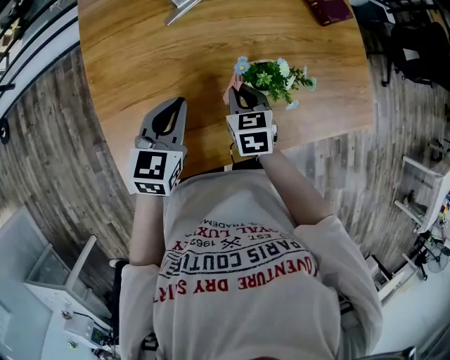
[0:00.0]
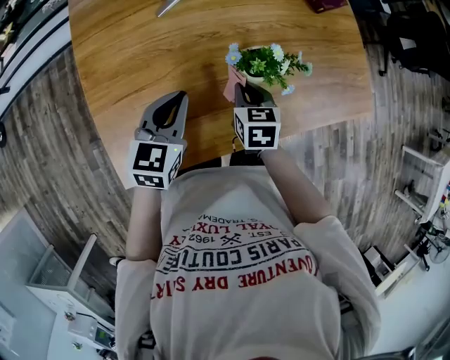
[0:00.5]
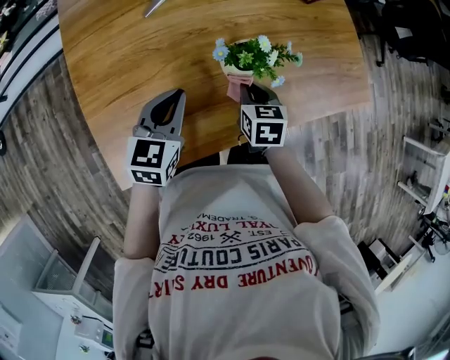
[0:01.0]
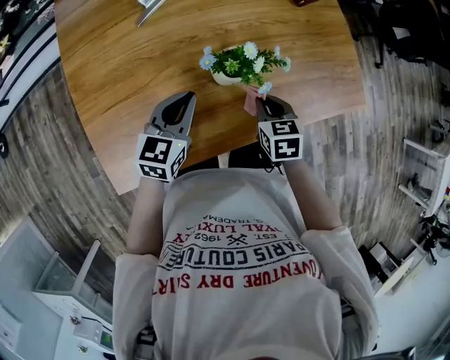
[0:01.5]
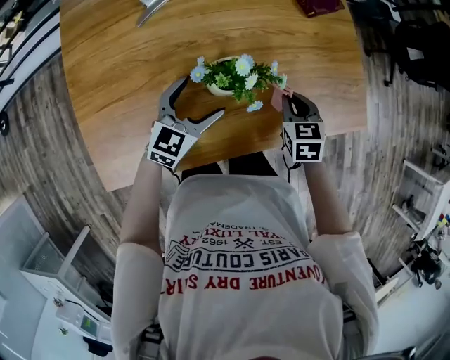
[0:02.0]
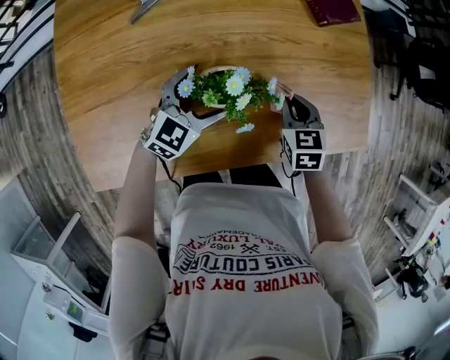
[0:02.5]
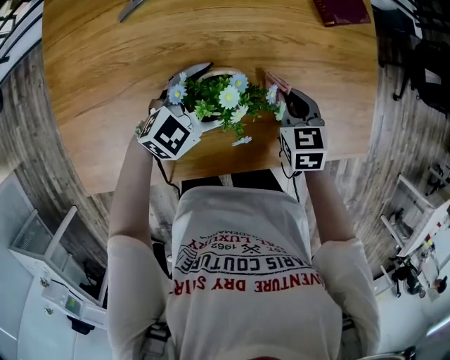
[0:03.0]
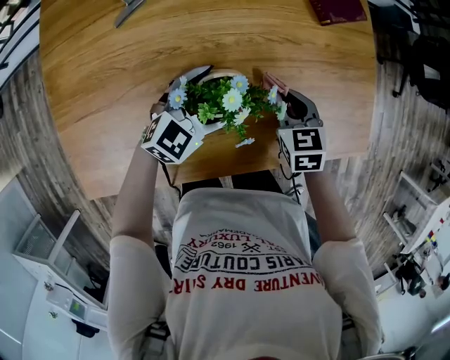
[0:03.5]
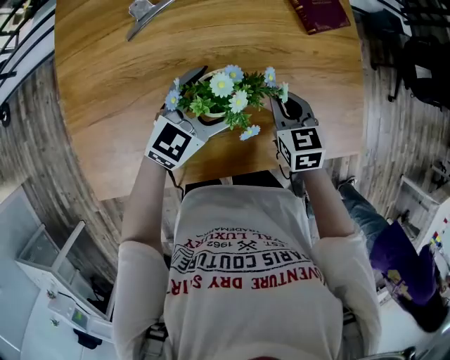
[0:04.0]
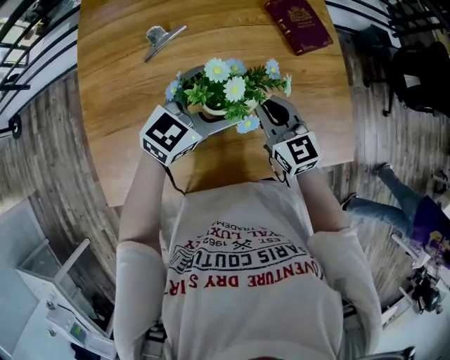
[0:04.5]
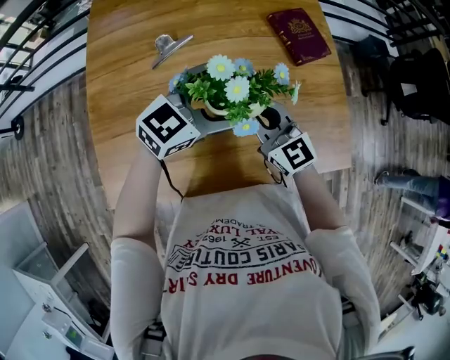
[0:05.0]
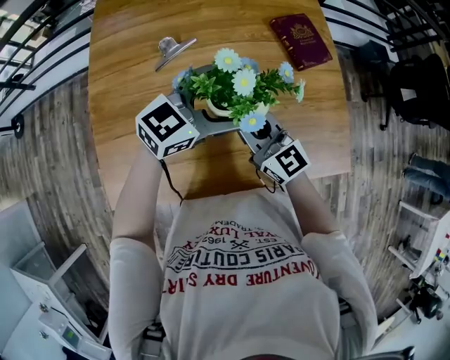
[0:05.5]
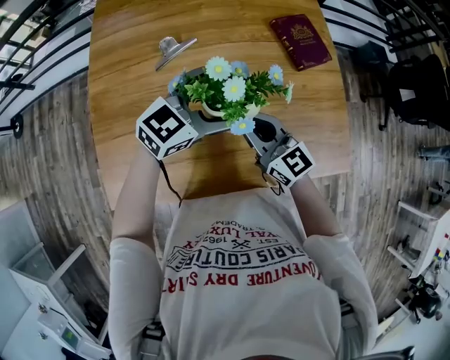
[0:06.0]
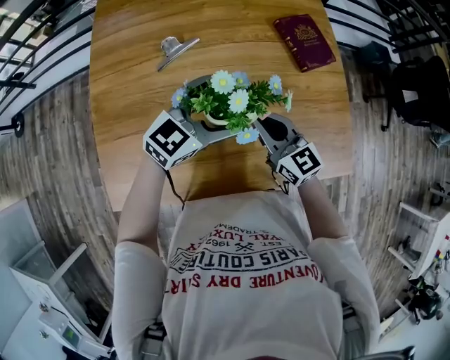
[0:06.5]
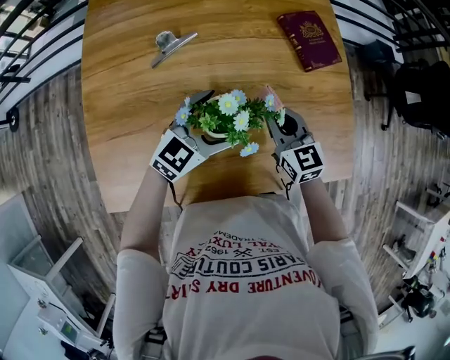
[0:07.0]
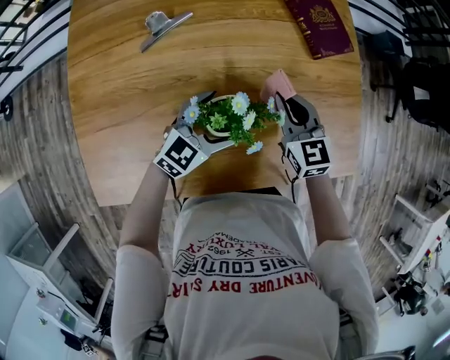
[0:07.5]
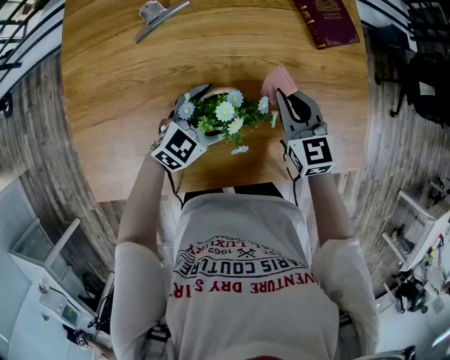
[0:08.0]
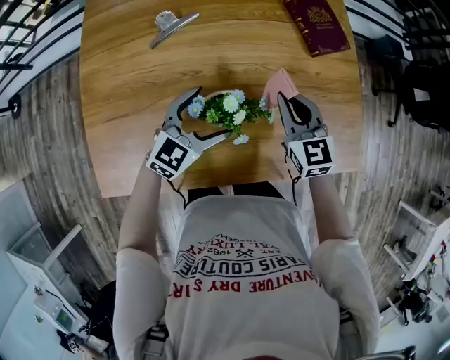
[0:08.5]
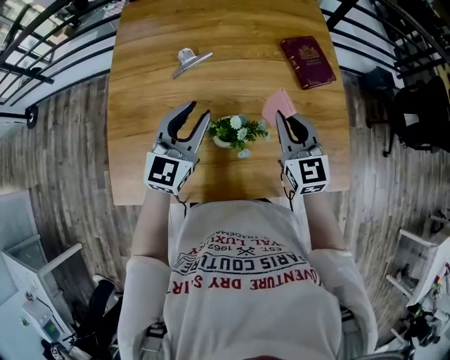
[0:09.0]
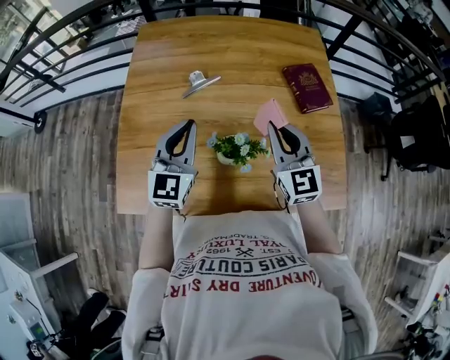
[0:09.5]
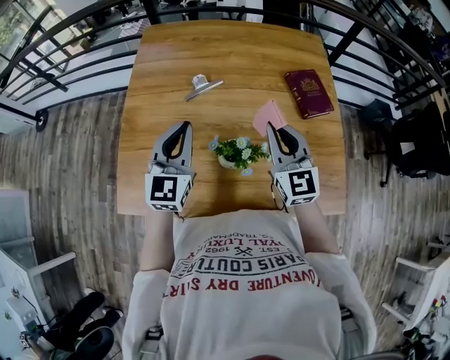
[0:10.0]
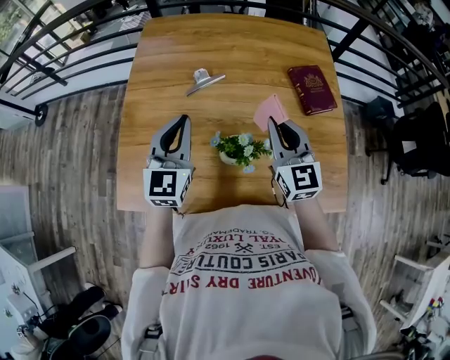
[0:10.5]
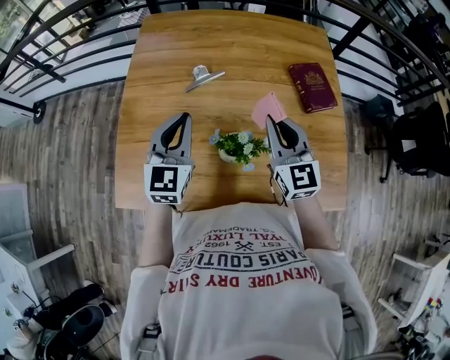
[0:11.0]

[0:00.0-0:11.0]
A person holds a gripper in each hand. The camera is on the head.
0:00.0 to 0:02.0: The right gripper is displaced to the right by about 25 cm; the left gripper moves to the right and downward, about 15 cm, and opens.
0:02.0 to 0:03.5: The left gripper moves forward and to the right, some 10 cm. Meanwhile the right gripper is displaced forward by approximately 5 cm.
0:03.5 to 0:05.5: The left gripper travels upward by roughly 20 cm, and changes its angle by about 20 degrees; the right gripper goes about 25 cm upward and to the left, and angles its fingers upward, by about 50 degrees.
0:05.5 to 0:07.5: The left gripper goes approximately 20 cm downward. The right gripper moves to the right, downward and forward, roughly 15 cm, and changes its angle by approximately 30 degrees.
0:07.5 to 0:09.0: The left gripper moves upward and to the left, approximately 20 cm, changes its angle by about 40 degrees, and closes its fingers. The right gripper travels upward by some 10 cm.
0:09.0 to 0:11.0: Both grippers move to the left, approximately 5 cm.

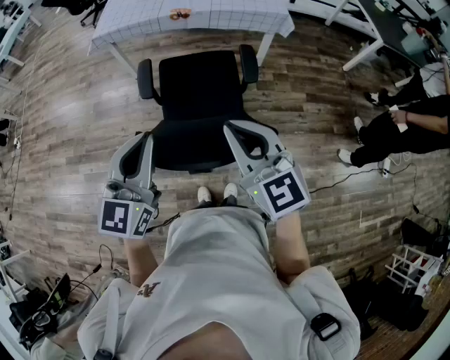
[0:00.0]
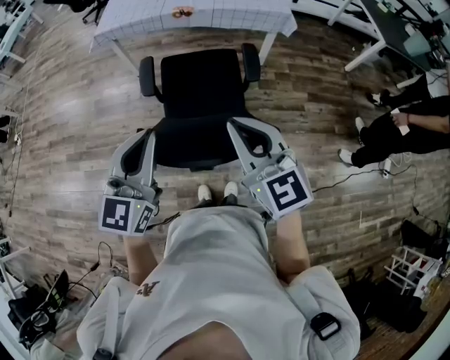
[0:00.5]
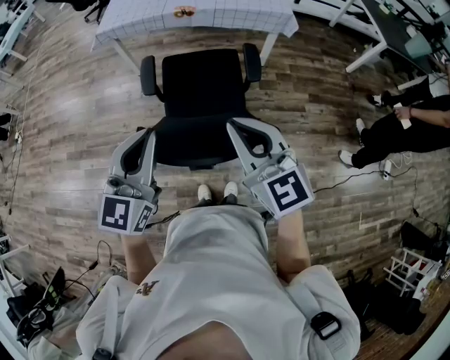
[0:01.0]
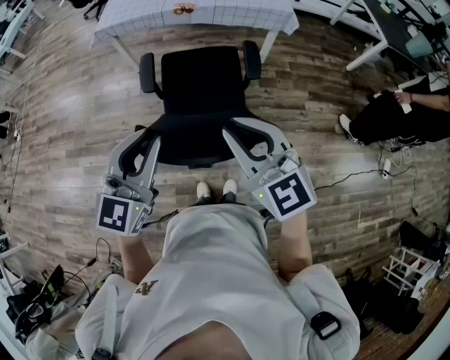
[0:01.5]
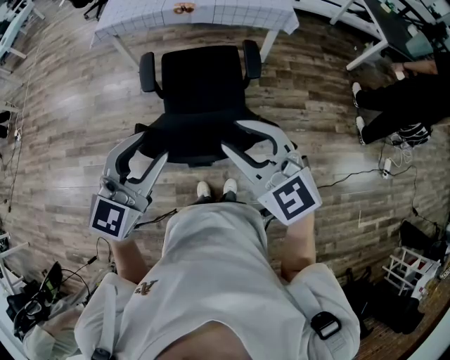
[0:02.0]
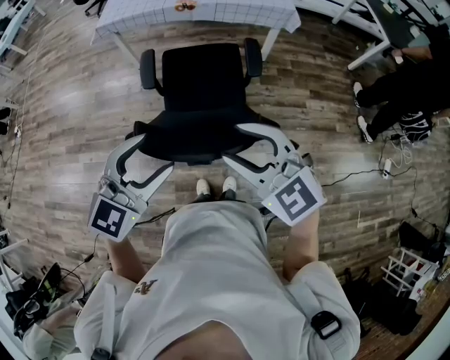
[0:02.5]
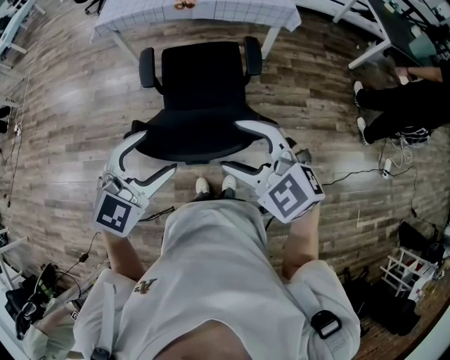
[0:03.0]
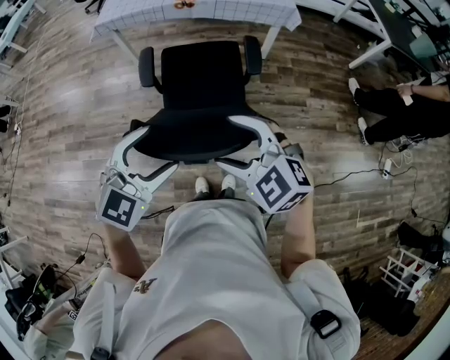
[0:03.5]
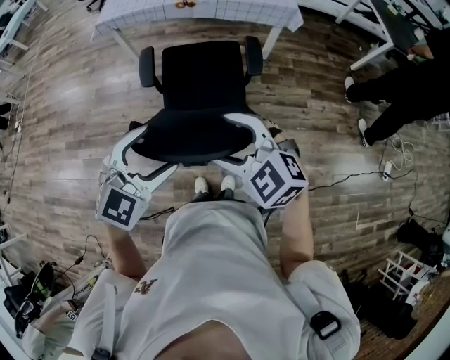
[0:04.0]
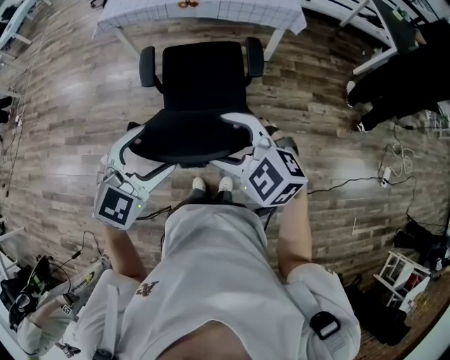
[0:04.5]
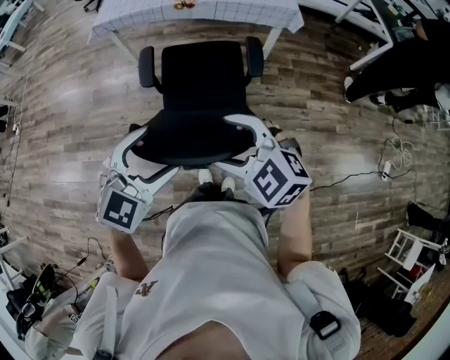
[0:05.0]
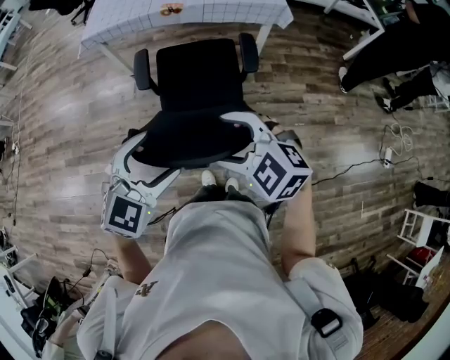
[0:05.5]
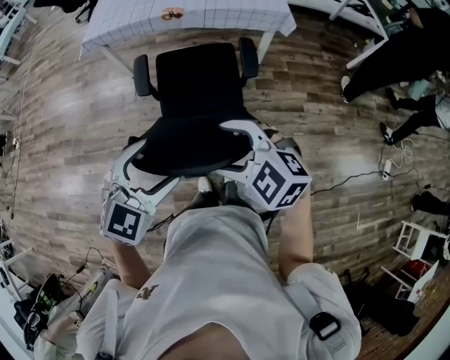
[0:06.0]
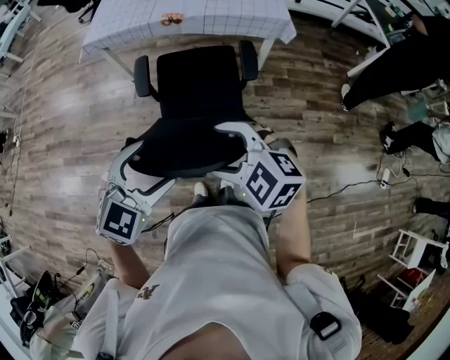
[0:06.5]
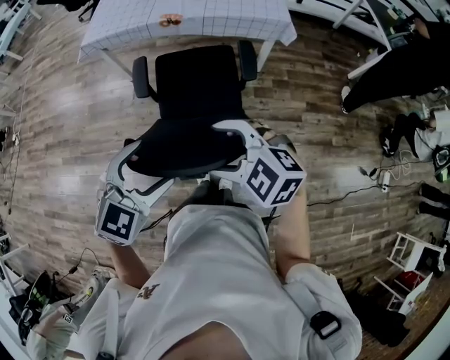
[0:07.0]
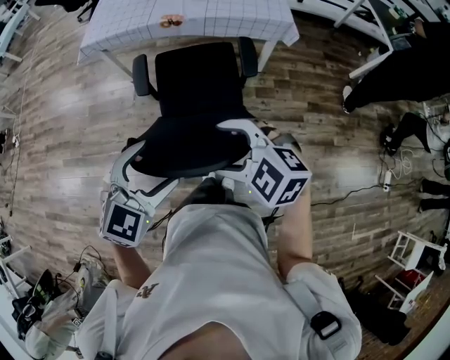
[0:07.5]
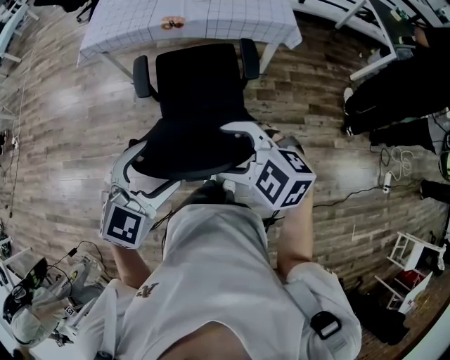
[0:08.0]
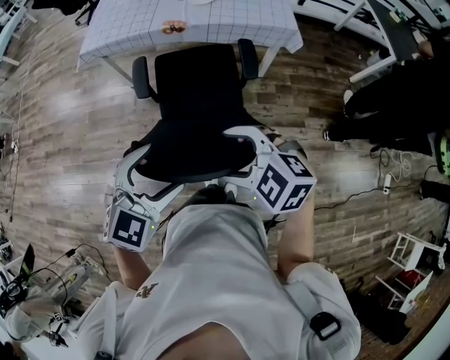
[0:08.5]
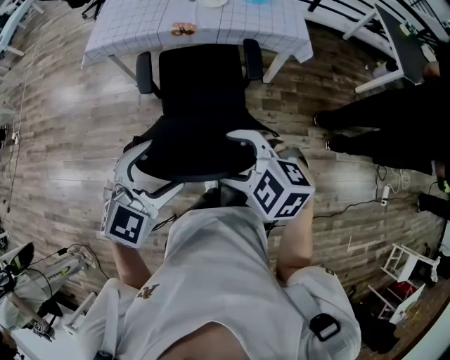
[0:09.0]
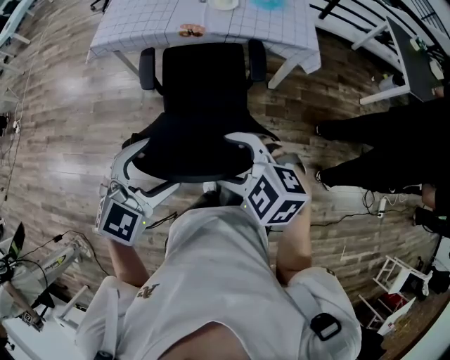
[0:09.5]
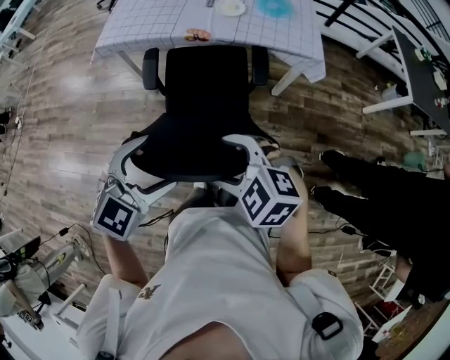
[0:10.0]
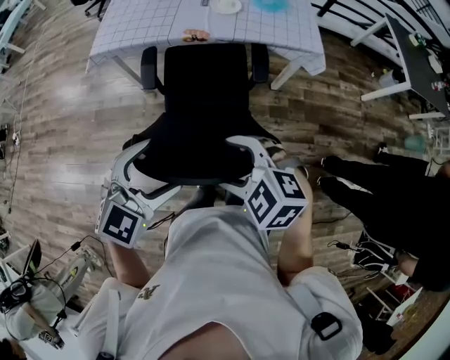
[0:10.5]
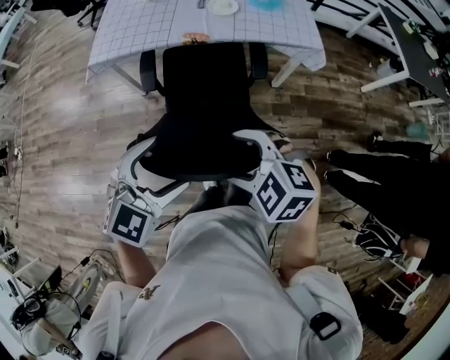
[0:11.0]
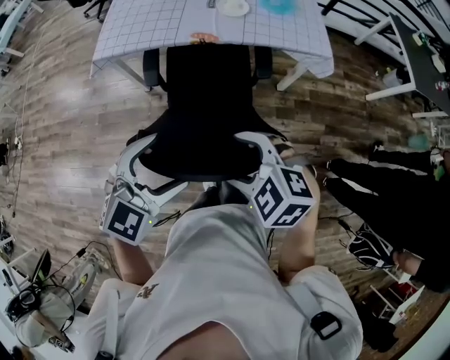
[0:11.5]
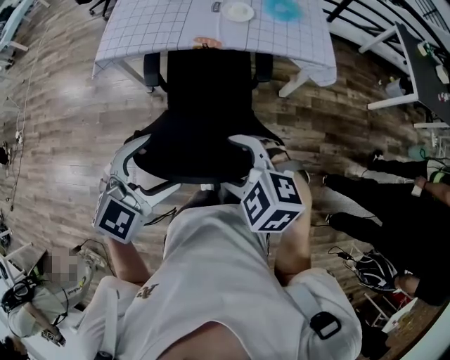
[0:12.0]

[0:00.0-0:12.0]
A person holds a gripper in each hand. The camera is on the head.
0:00.0 to 0:02.0: The right gripper opens its fingers. Meanwhile the left gripper opens.
0:02.0 to 0:04.0: The grippers both shift downward by approximately 5 cm. The left gripper changes its angle by roughly 20 degrees, and opens its fingers. Meanwhile the right gripper swivels approximately 20 degrees, and opens up.
0:04.0 to 0:06.0: The two grippers go about 5 cm forward.
0:06.0 to 0:08.0: The two grippers go roughly 10 cm forward.
0:08.0 to 0:10.0: Both grippers move forward, approximately 10 cm.
0:10.0 to 0:12.0: The right gripper is displaced forward and to the left by approximately 10 cm. Meanwhile the left gripper travels forward by approximately 10 cm.

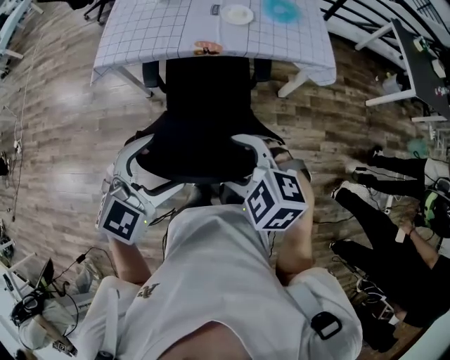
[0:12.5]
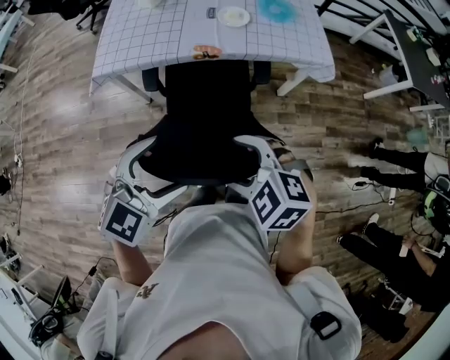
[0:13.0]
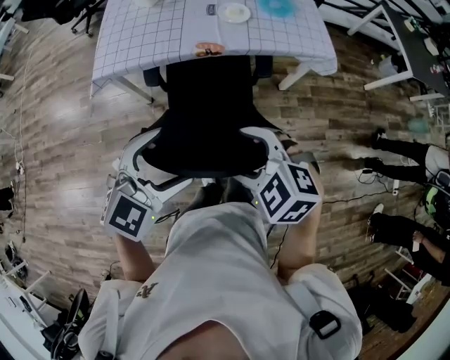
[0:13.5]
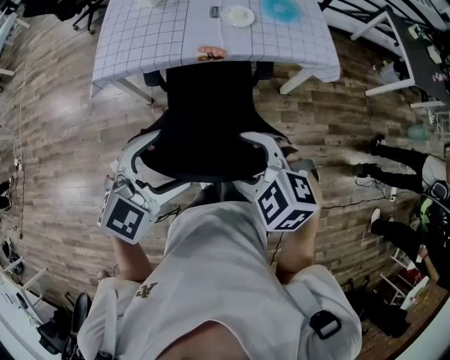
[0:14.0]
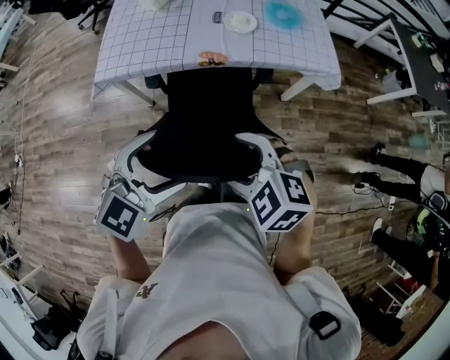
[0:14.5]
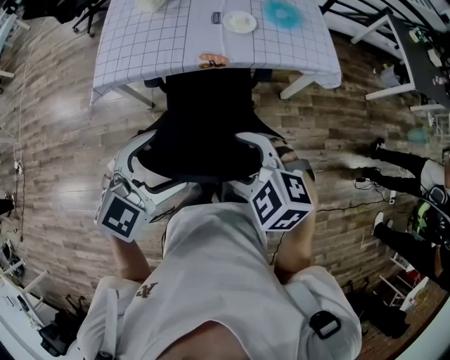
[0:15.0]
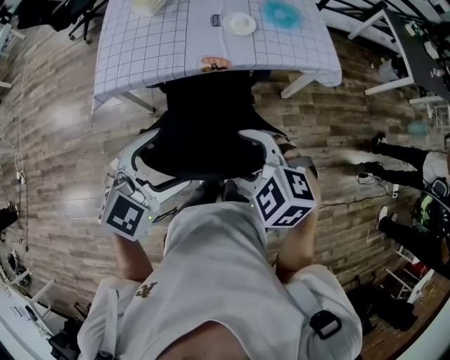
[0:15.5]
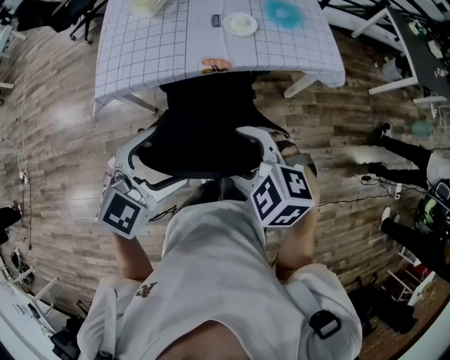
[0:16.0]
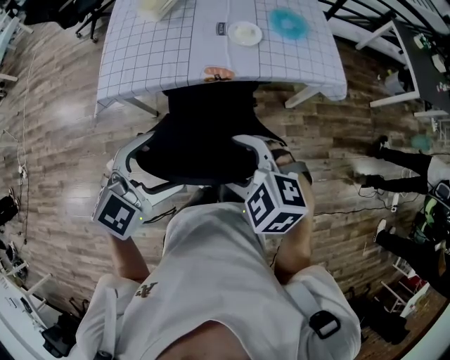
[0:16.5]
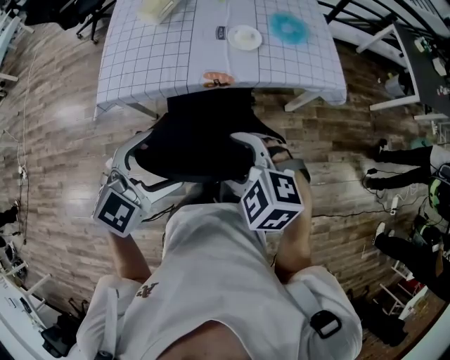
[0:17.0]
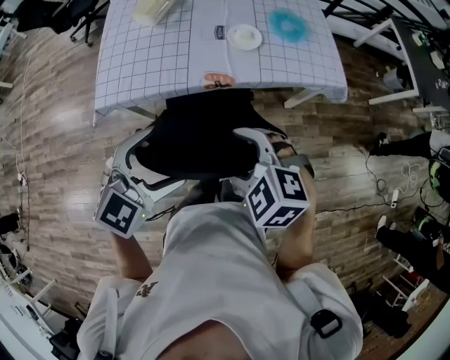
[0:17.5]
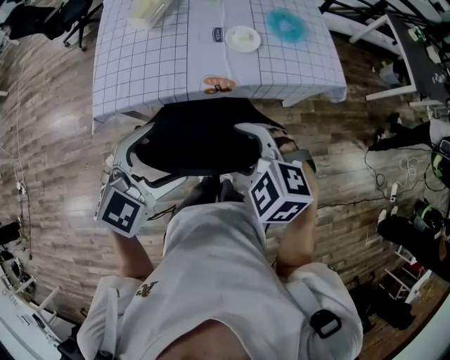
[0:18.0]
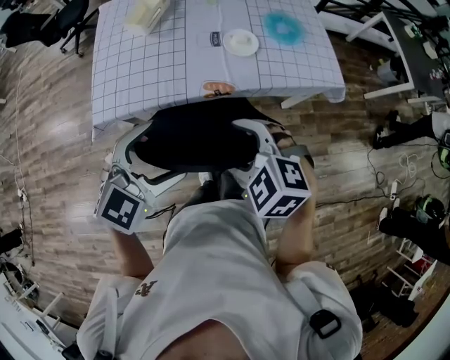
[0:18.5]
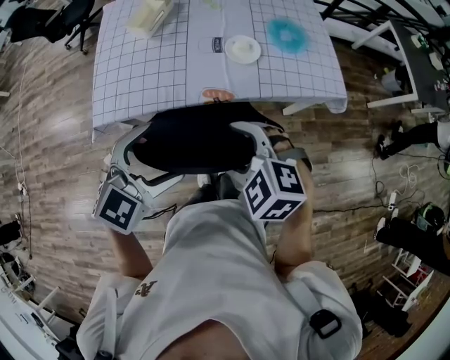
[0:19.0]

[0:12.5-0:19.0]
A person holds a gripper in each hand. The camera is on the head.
0:12.5 to 0:14.5: The two grippers go about 5 cm forward.
0:14.5 to 0:17.0: Both grippers move forward, approximately 10 cm.
0:17.0 to 0:19.0: Both grippers move forward, some 10 cm.
